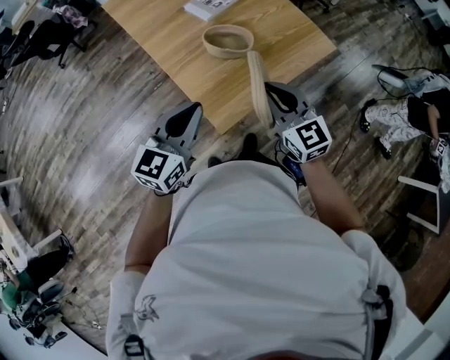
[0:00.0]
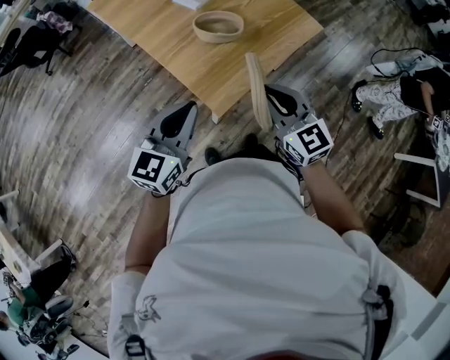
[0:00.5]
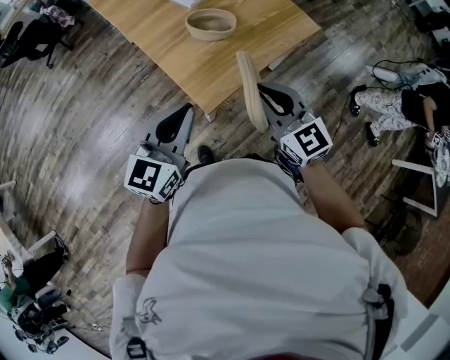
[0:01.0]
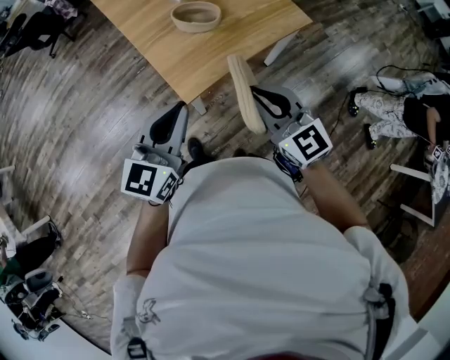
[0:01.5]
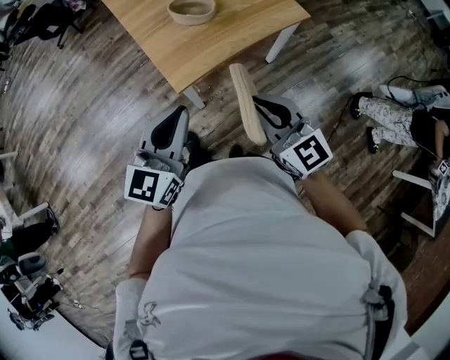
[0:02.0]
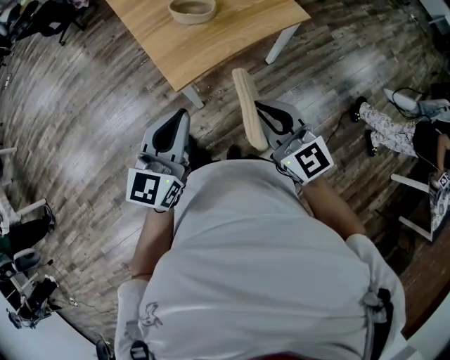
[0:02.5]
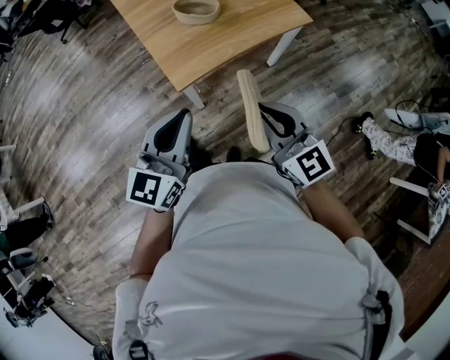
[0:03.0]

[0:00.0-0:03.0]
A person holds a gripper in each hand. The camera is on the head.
0.0 to 1.5 s: The grippers both shift backward and to the right by about 15 cm.
1.5 to 3.0 s: The grippers both shift backward by some 10 cm.

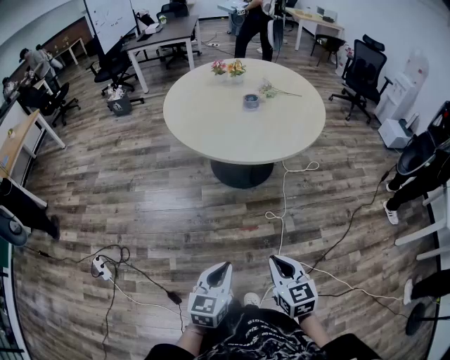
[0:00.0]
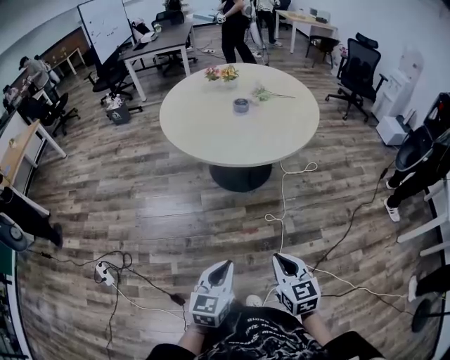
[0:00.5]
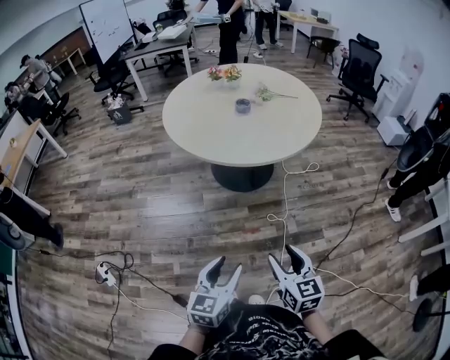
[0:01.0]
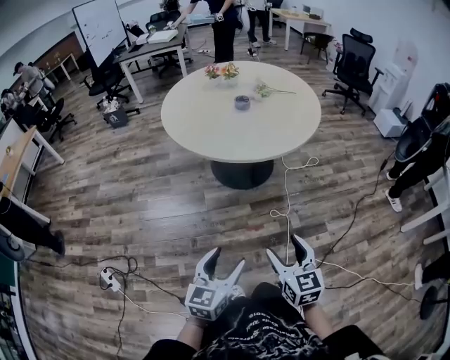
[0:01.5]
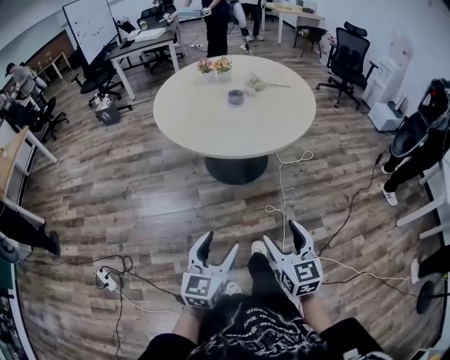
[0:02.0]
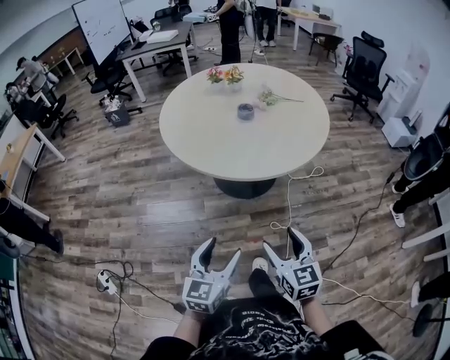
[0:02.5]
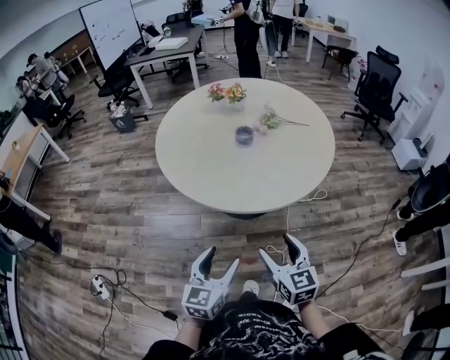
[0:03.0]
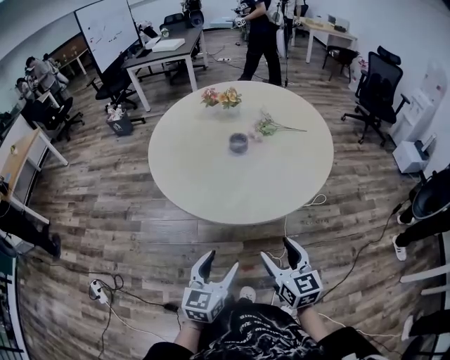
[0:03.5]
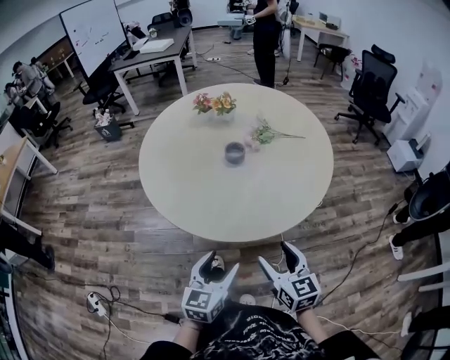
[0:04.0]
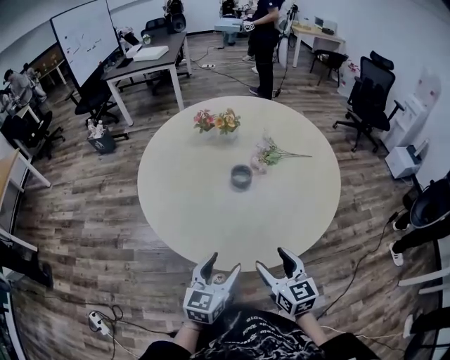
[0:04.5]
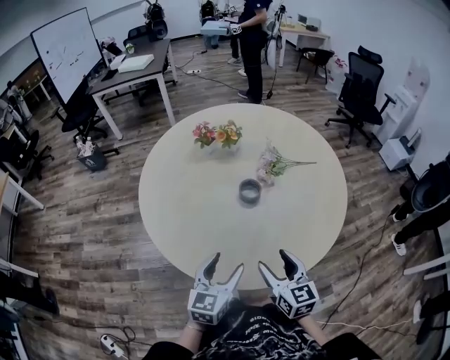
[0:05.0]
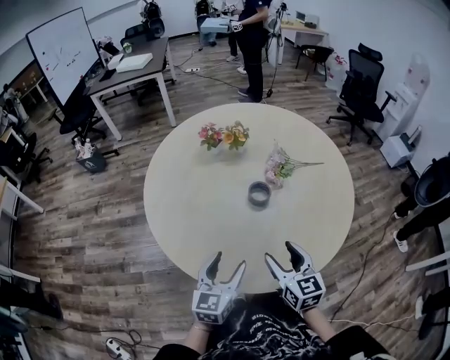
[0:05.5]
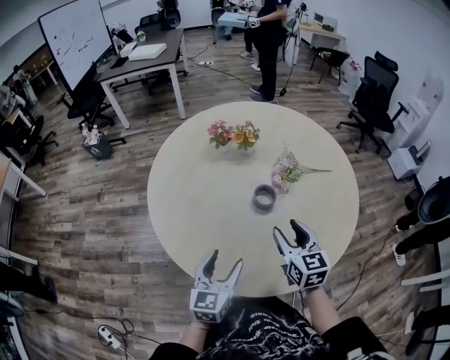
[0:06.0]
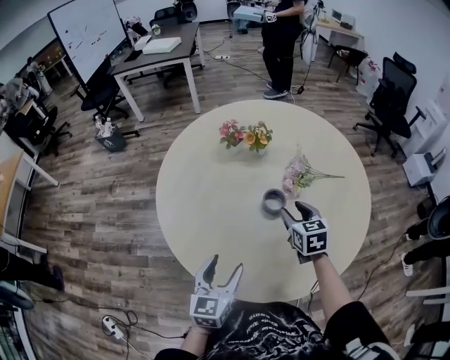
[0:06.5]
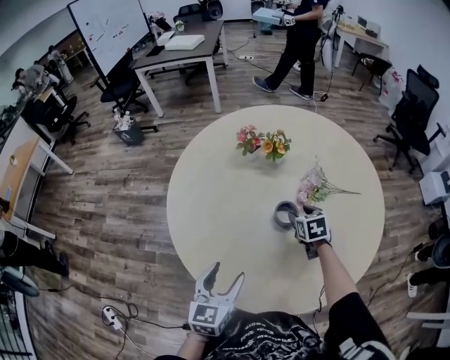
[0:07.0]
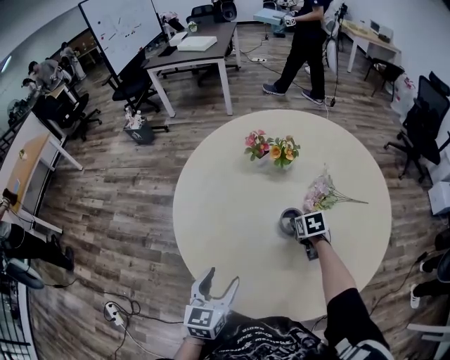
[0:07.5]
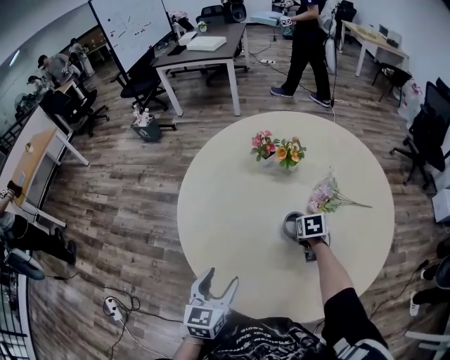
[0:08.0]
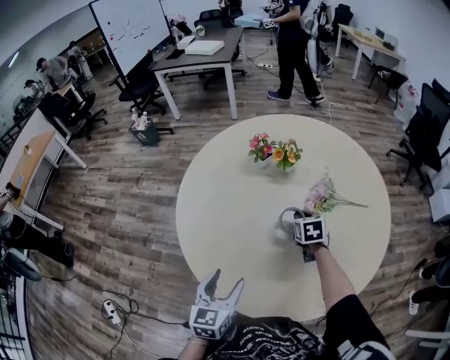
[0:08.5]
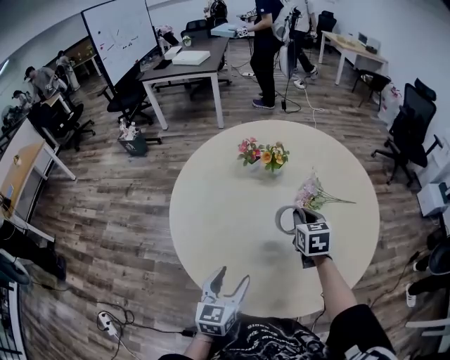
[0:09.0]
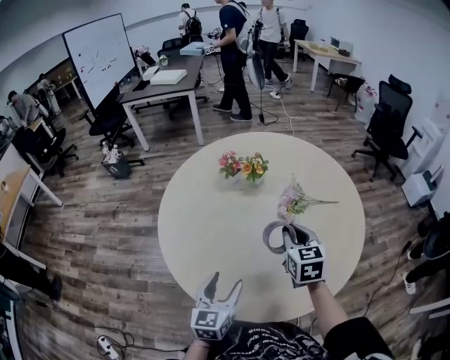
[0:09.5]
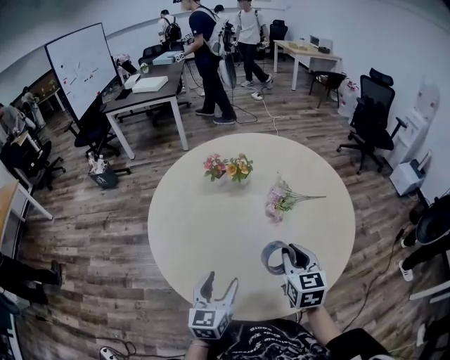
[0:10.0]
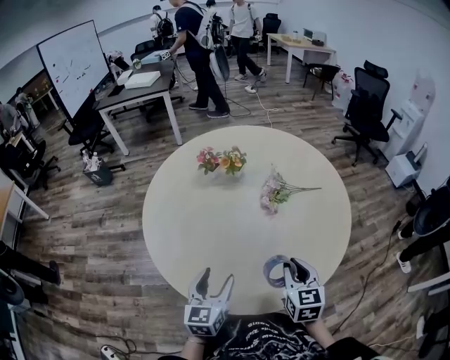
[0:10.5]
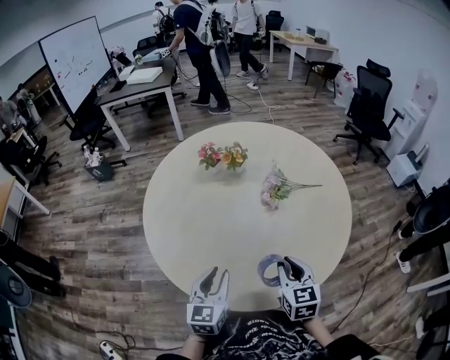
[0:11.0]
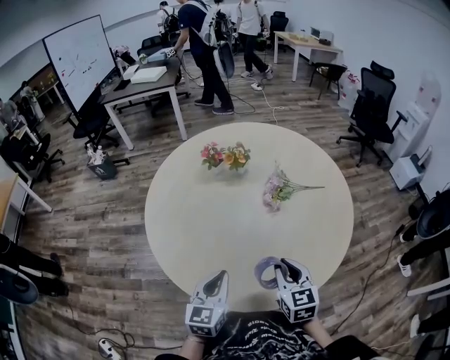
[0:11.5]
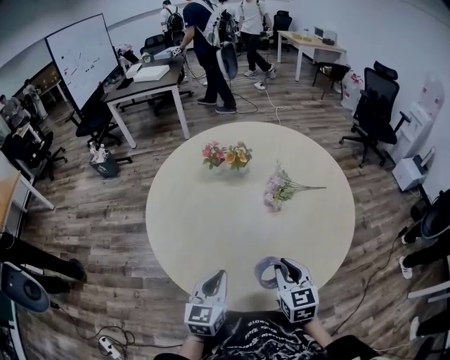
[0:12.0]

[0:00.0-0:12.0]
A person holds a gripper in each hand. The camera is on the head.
0.0 to 2.0 s: The right gripper changes place by about 5 cm, and opens its fingers, while the left gripper moves about 5 cm, and opens up.
2.0 to 4.0 s: The two grippers go roughly 35 cm forward.
4.0 to 6.0 s: Both grippers travel together forward and to the left, roughly 30 cm.
6.0 to 8.0 s: The right gripper is displaced forward and downward by approximately 25 cm, tilts its fingers about 40 degrees downward, and closes its fingers.
8.0 to 10.0 s: The right gripper moves upward and backward, approximately 30 cm, and tilts its fingers approximately 40 degrees upward, while the left gripper shifts some 5 cm to the right.
10.0 to 12.0 s: The left gripper closes its fingers. Meanwhile the right gripper moves backward, some 5 cm.

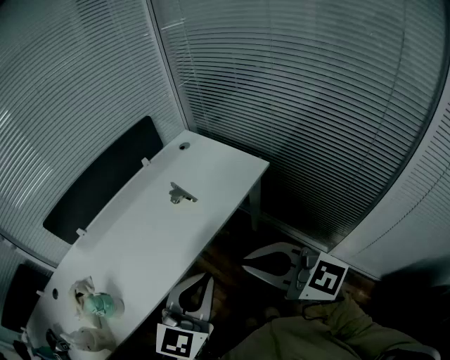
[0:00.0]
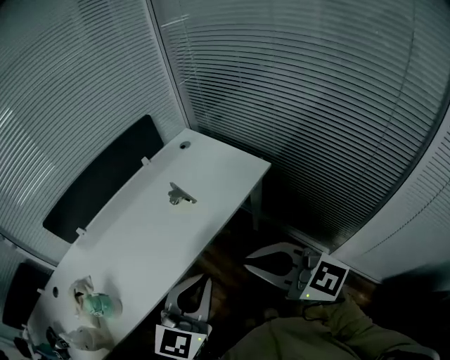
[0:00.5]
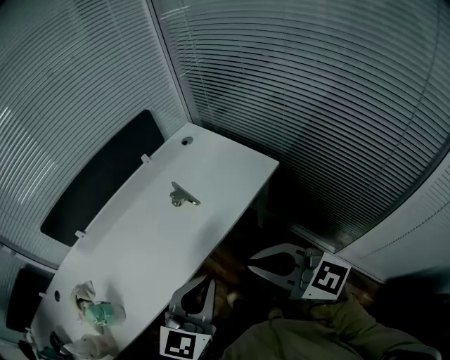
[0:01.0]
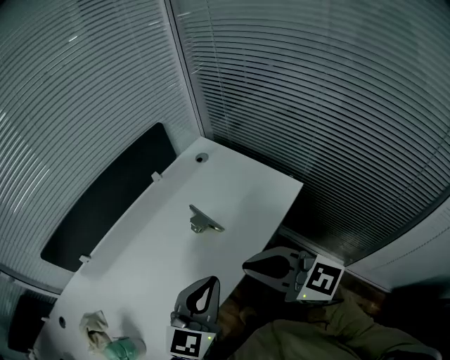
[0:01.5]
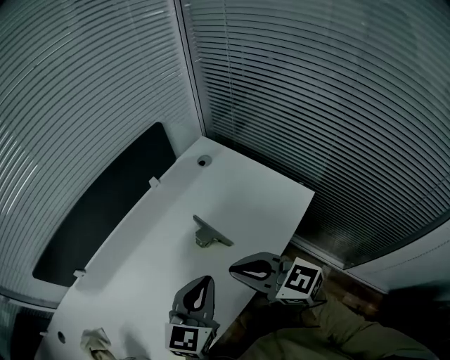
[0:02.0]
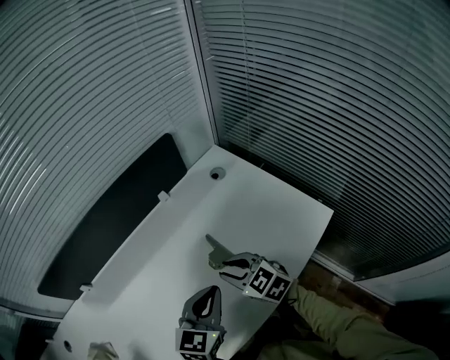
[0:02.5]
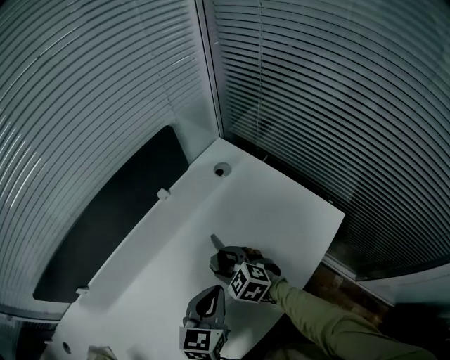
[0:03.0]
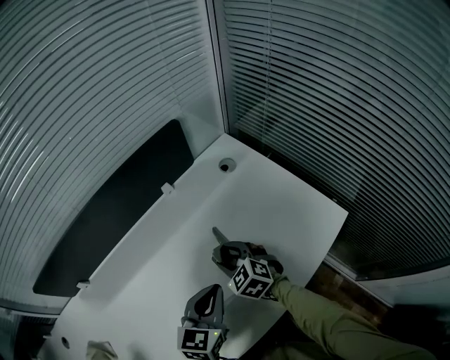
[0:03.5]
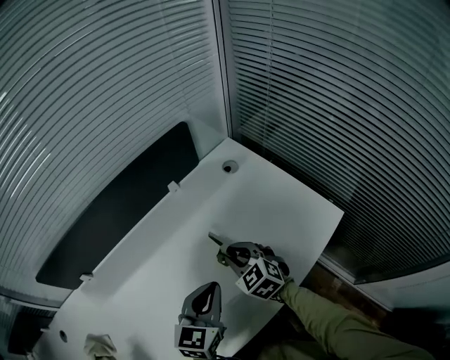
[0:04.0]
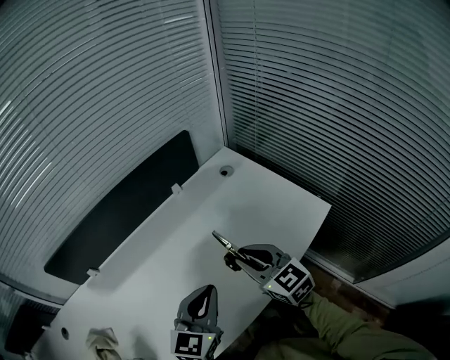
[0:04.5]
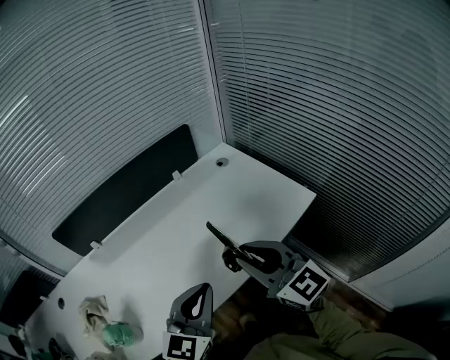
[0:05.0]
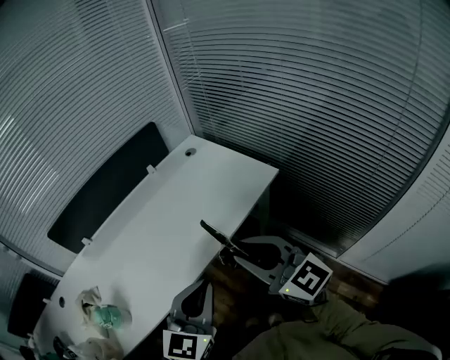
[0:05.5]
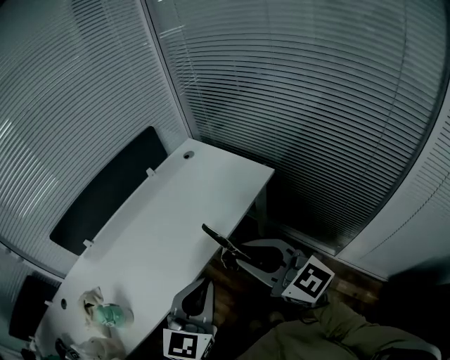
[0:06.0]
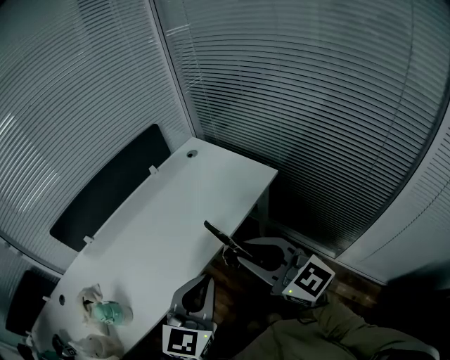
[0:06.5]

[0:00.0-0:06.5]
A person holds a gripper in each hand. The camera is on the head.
0.0 to 2.0 s: The right gripper shifts roughly 30 cm forward and downward, while the left gripper is displaced forward by some 30 cm.
2.0 to 4.5 s: The left gripper reaches approximately 10 cm downward, then returns. The right gripper goes approximately 5 cm forward, reaches approximately 20 cm downward, then returns, and opens and closes again.
4.5 to 6.5 s: The right gripper shifts some 30 cm backward and upward, and swivels roughly 20 degrees. The left gripper is displaced backward and to the right by approximately 25 cm.

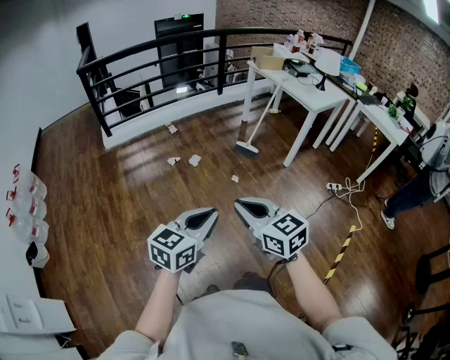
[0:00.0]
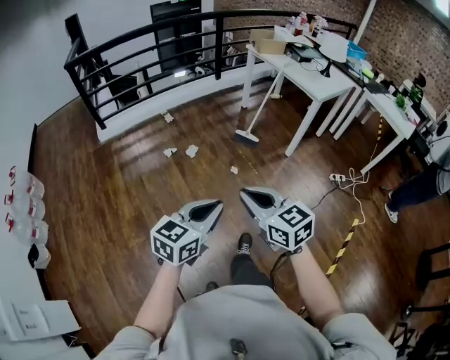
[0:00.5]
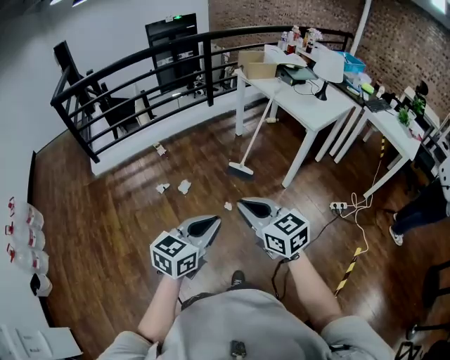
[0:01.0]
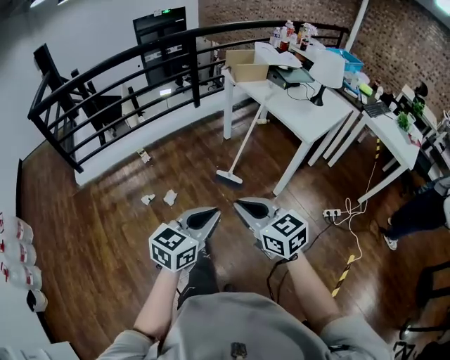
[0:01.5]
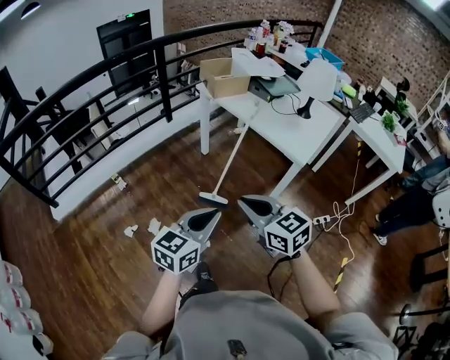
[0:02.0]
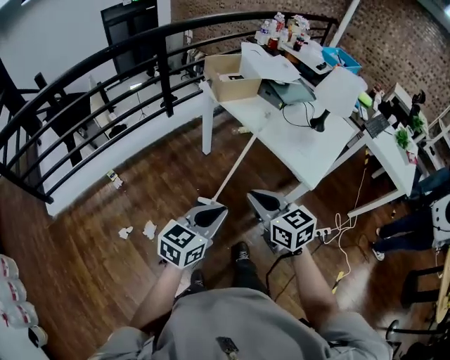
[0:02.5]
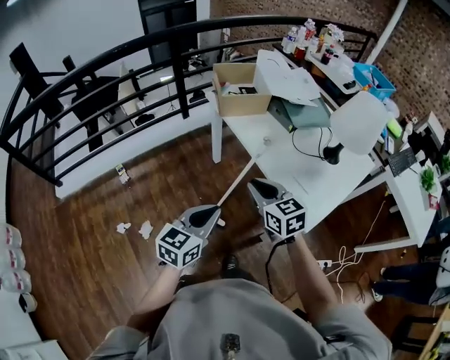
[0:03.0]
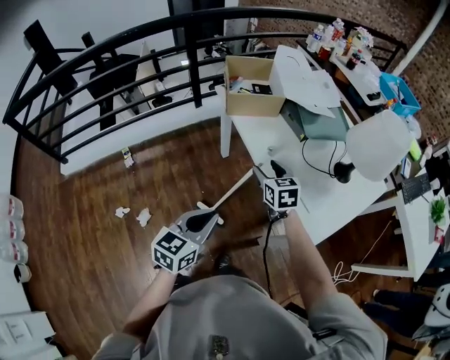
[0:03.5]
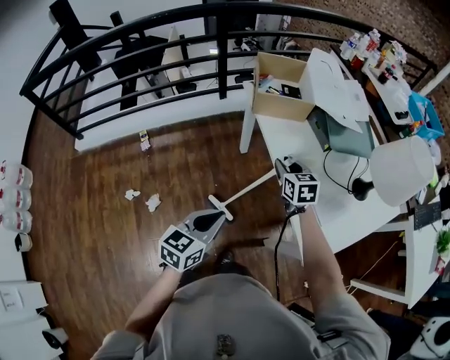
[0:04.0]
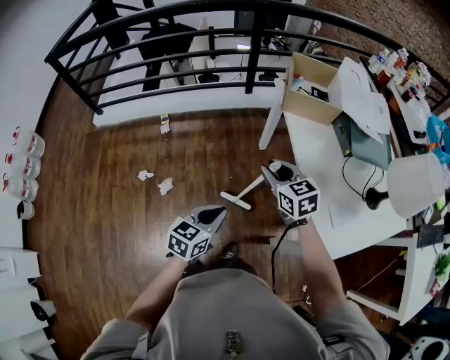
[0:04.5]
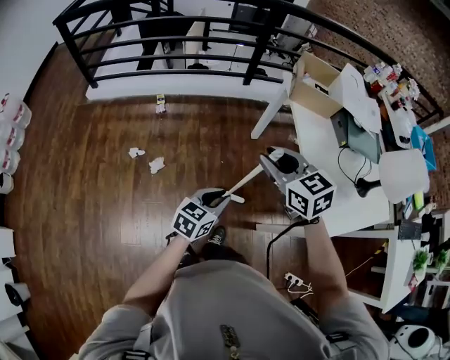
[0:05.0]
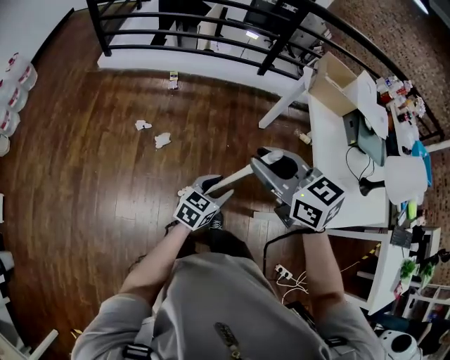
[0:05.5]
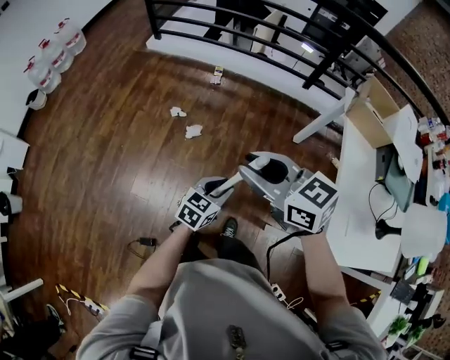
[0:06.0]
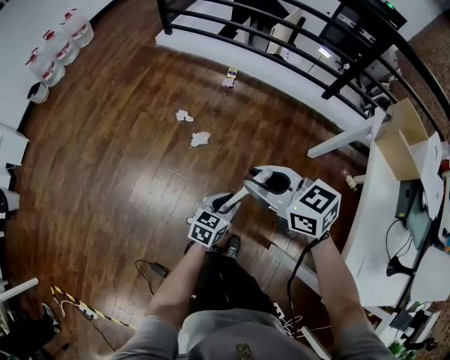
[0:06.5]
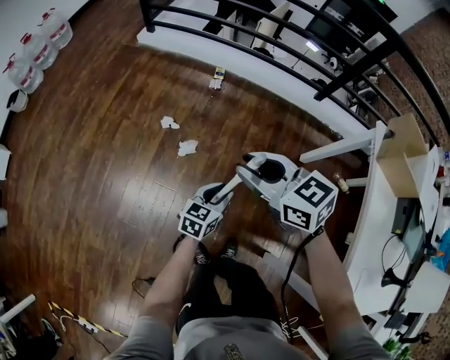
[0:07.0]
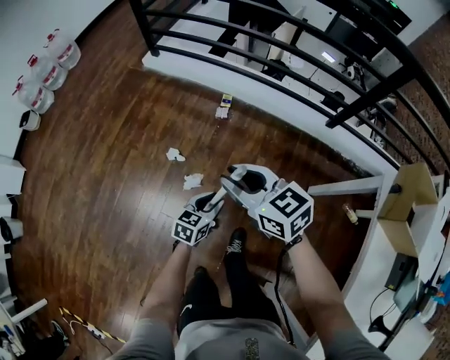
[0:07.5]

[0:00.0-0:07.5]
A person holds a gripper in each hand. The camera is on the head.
0.0 to 2.0 s: The pair of grippers is taken forward, about 70 cm.
2.0 to 4.0 s: The right gripper moves forward, approximately 50 cm, and opens; the left gripper is displaced forward and to the right by about 35 cm, and changes its angle by approximately 30 degrees.
4.0 to 5.5 s: The left gripper changes place by about 25 cm, and opens its fingers, while the right gripper shifts by about 50 cm, and rotates about 50 degrees.
5.5 to 7.5 s: The left gripper ends up some 40 cm from where it was, and swivels approximately 30 degrees. The right gripper moves about 50 cm, and swivels approximately 30 degrees.
